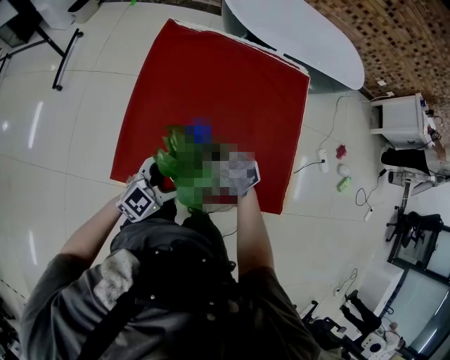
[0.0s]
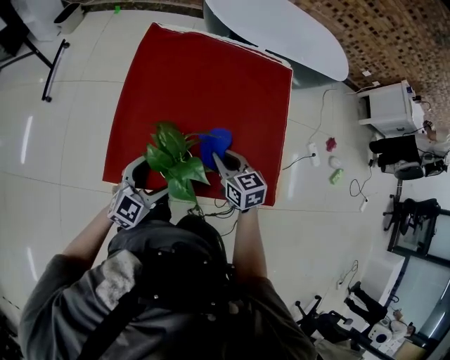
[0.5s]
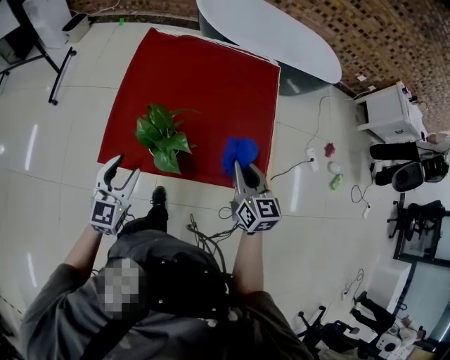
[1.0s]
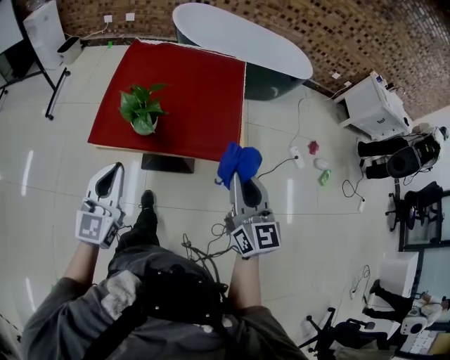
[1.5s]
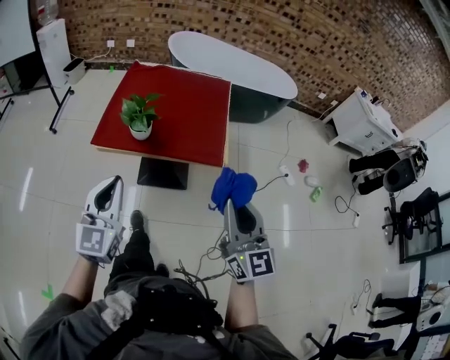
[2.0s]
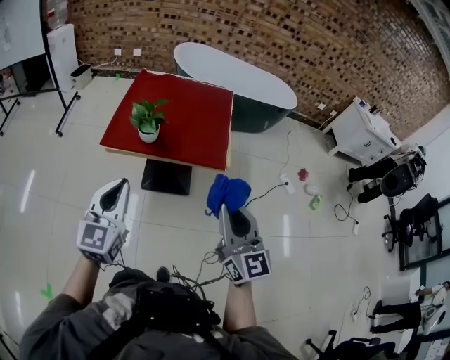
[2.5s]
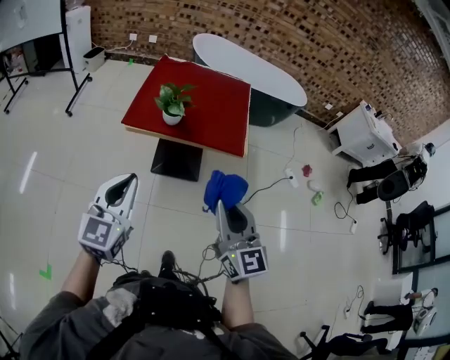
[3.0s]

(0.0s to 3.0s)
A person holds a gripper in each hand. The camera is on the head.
0.0s - 1.5s: The left gripper shifts some 40 cm backward and upward, swivels roughly 40 degrees, and closes its fingers; the right gripper moves backward, to the right and upward, roughly 60 cm, and tips its fingers upward by some 40 degrees.
1.5s - 3.0s: The left gripper shifts some 30 cm backward, while the right gripper goes approximately 30 cm backward and to the left.

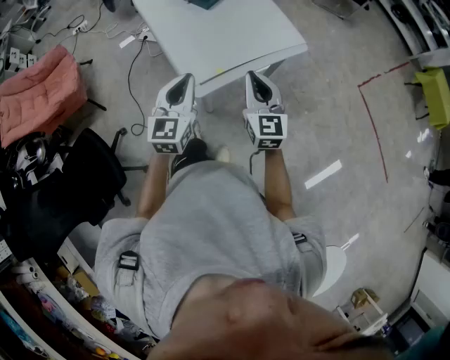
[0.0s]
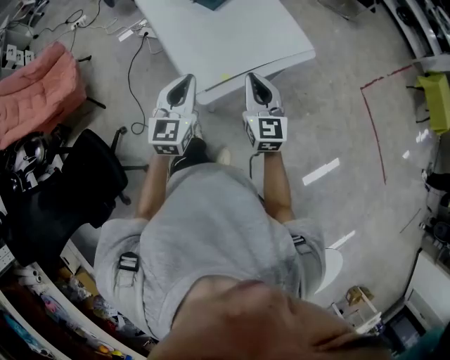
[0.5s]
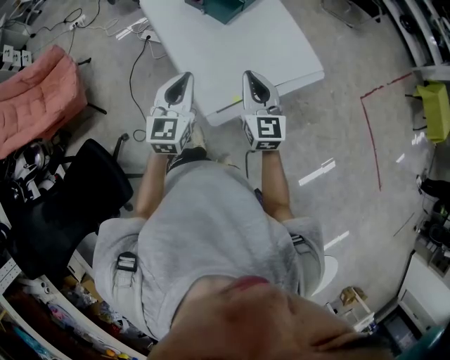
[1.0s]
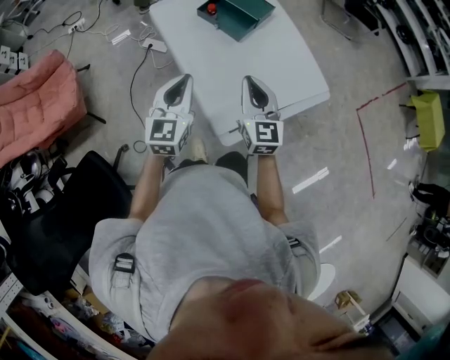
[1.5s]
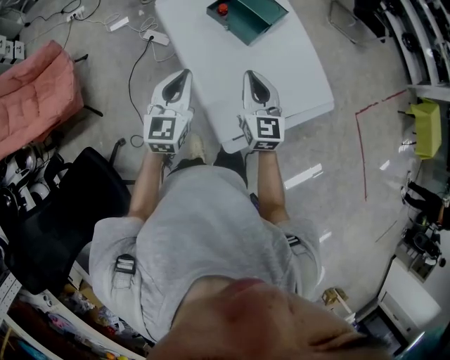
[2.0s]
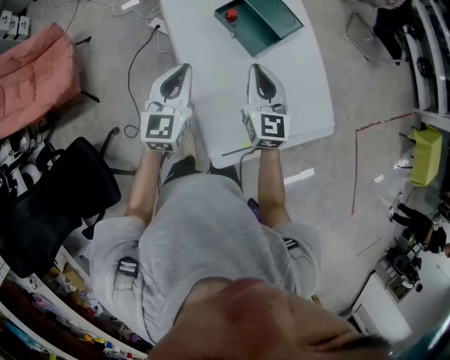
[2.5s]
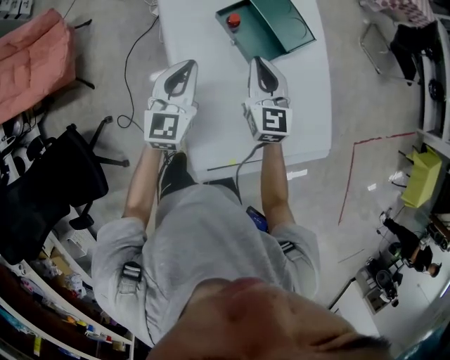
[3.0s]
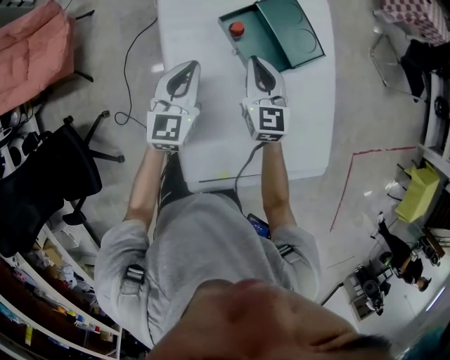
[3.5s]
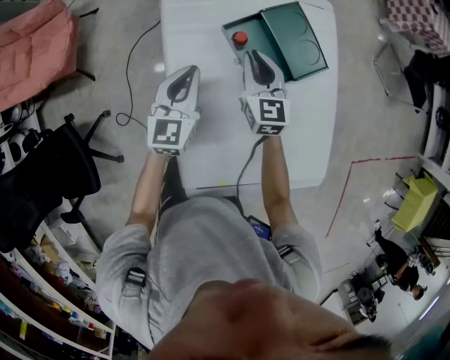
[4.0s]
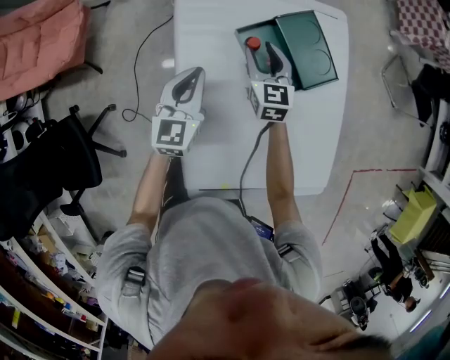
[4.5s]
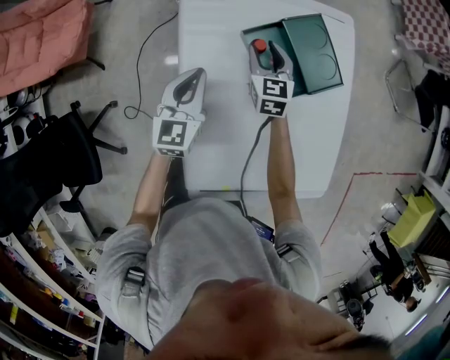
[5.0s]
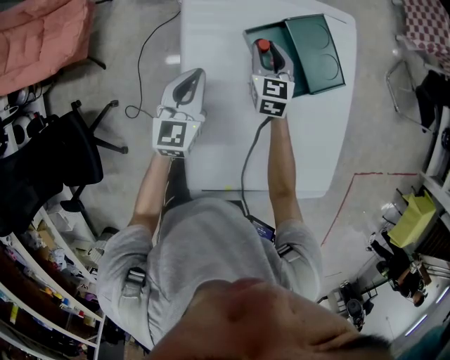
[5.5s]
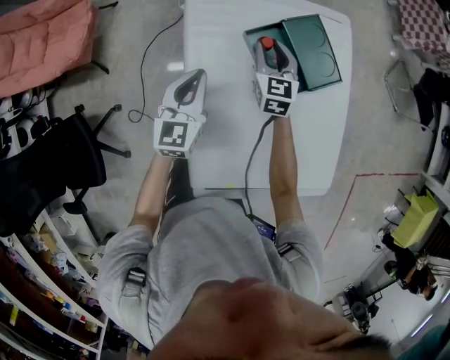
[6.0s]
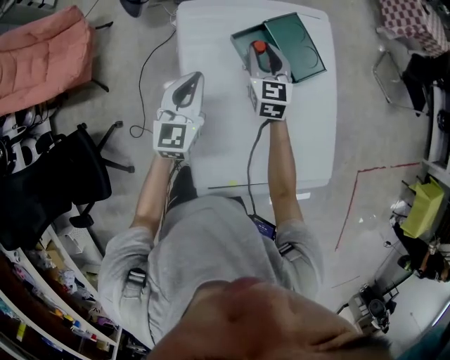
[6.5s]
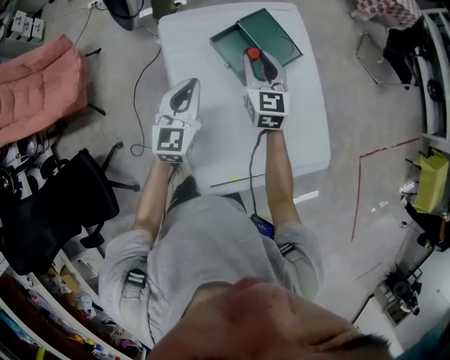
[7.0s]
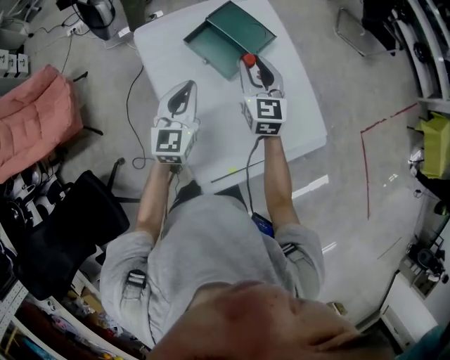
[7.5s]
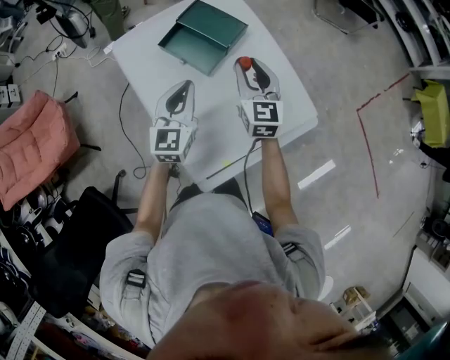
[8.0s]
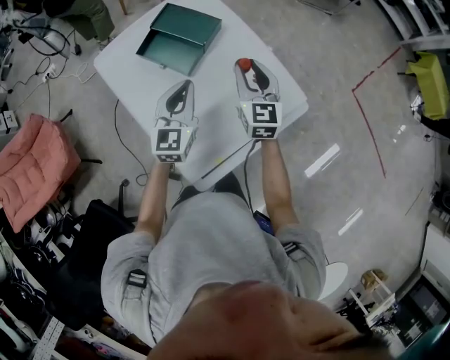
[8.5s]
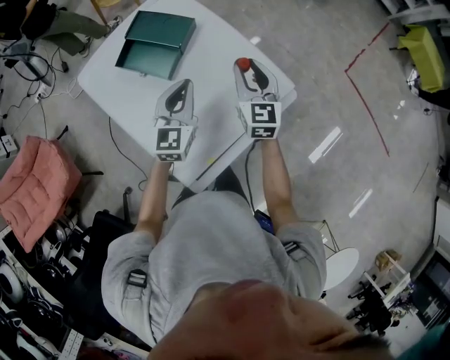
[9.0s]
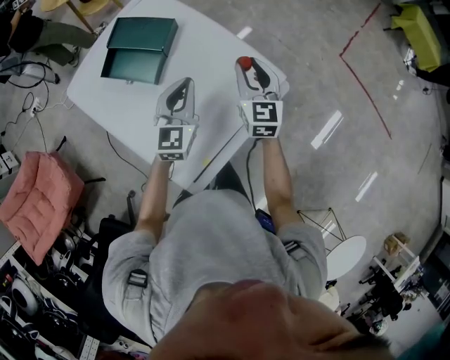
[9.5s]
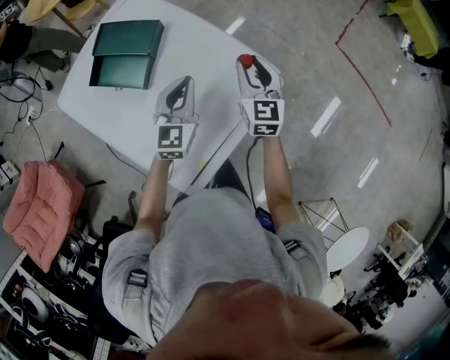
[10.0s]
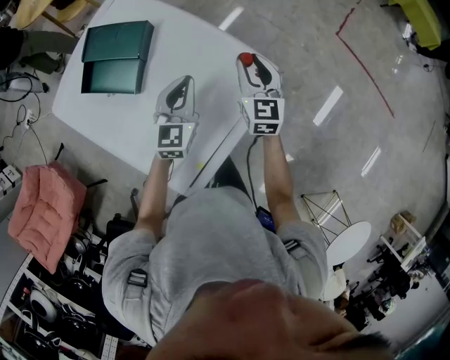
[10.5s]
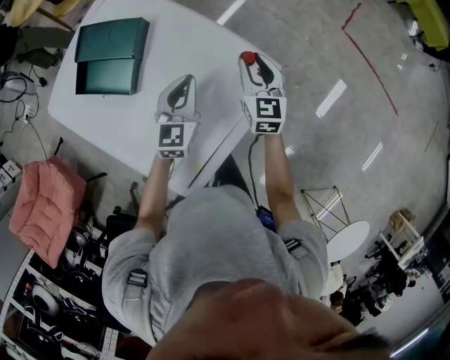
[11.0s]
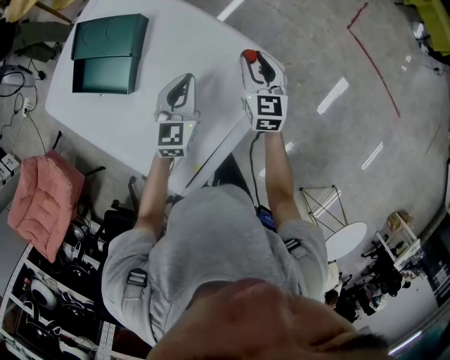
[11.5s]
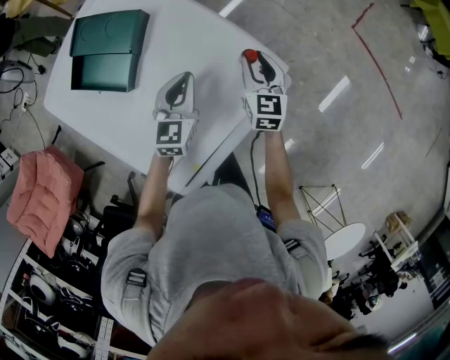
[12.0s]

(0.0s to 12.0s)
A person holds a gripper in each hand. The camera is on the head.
0.0s - 2.0s: The two grippers go approximately 35 cm forward and to the left.
2.0s - 4.0s: The grippers both shift forward and downward by about 30 cm. The right gripper changes its angle by approximately 20 degrees.
4.0s - 6.0s: The right gripper is displaced forward by roughly 5 cm.
6.0s - 8.0s: The left gripper moves to the right, upward and backward, some 20 cm, and rotates some 30 degrees. Meanwhile the right gripper travels backward, to the right and upward by roughly 30 cm, and turns by about 30 degrees.
8.0s - 10.0s: Both grippers move to the right, approximately 25 cm. The left gripper changes its angle by about 20 degrees, while the right gripper swivels approximately 20 degrees.
10.0s - 12.0s: Both grippers move downward, some 10 cm.

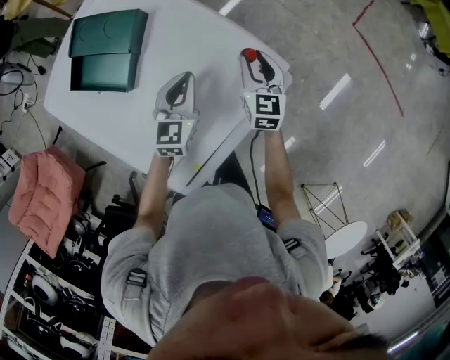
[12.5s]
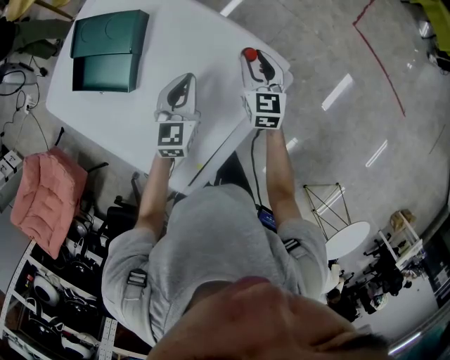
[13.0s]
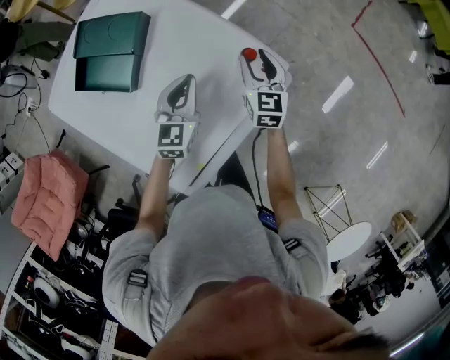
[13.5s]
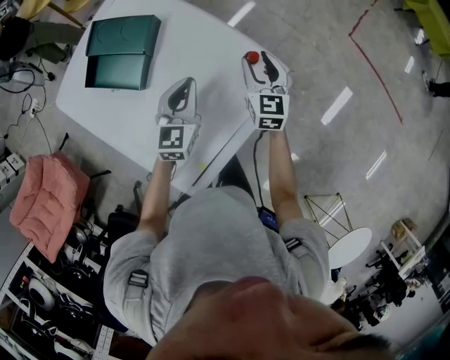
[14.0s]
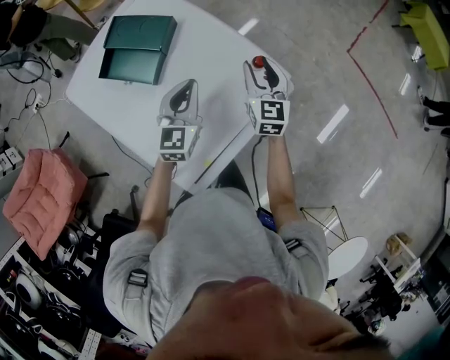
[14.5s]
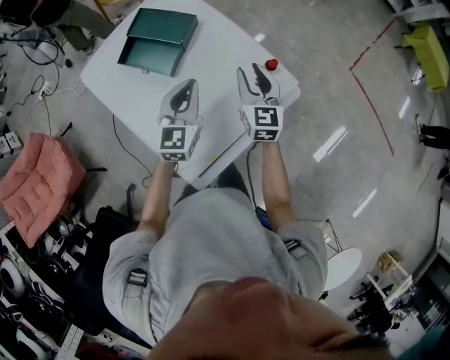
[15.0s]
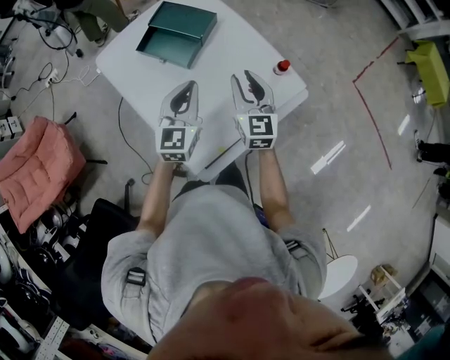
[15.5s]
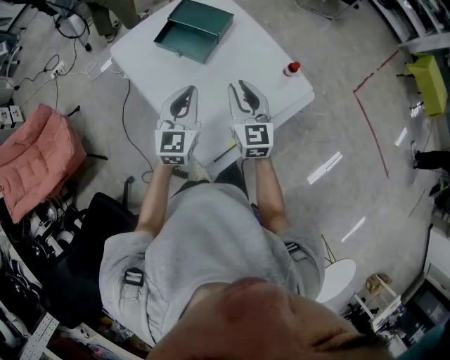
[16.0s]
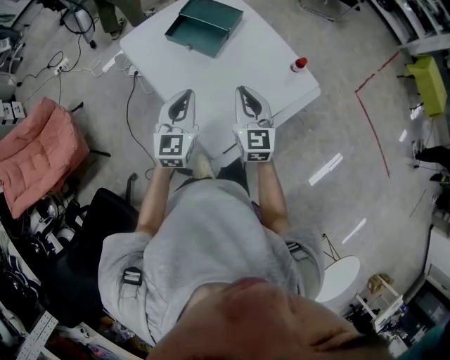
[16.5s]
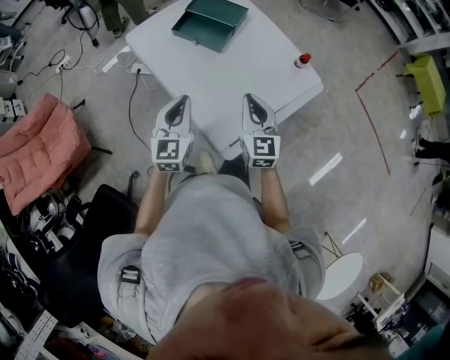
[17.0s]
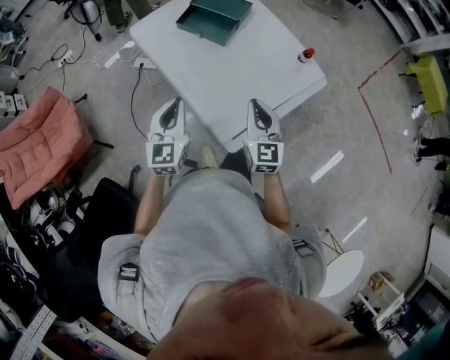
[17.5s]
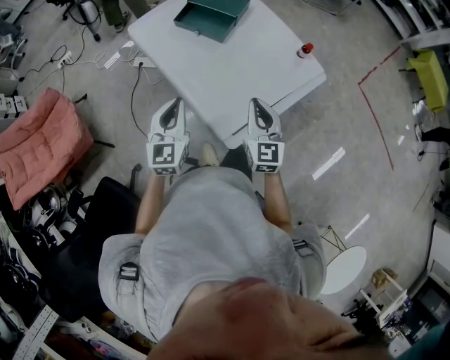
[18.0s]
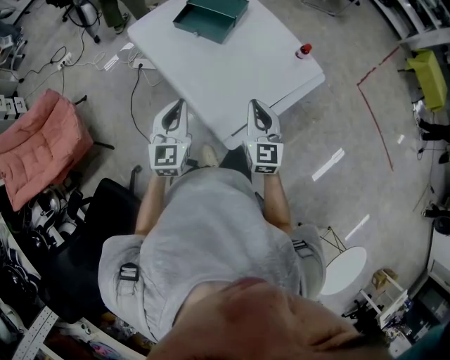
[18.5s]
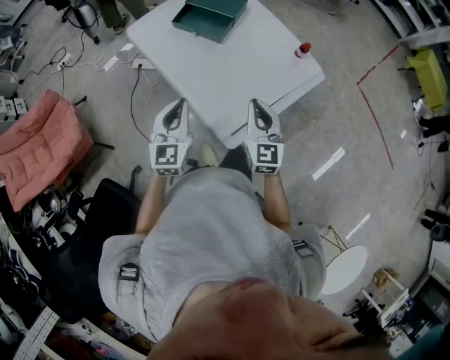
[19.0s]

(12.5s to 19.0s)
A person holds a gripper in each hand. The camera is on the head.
12.5s - 14.5s: The right gripper shifts roughly 10 cm upward; the left gripper moves upward and backward, some 10 cm.
14.5s - 17.0s: The left gripper travels to the left and backward by about 35 cm; the right gripper goes some 35 cm backward and to the left, and closes.
17.0s - 19.0s: The grippers both shift backward by roughly 5 cm.

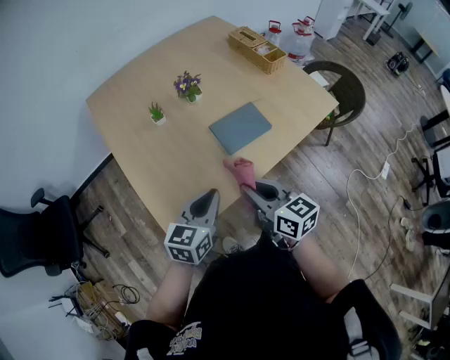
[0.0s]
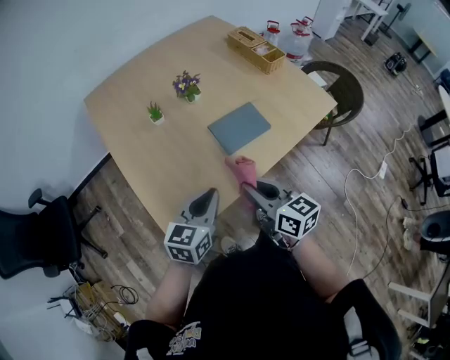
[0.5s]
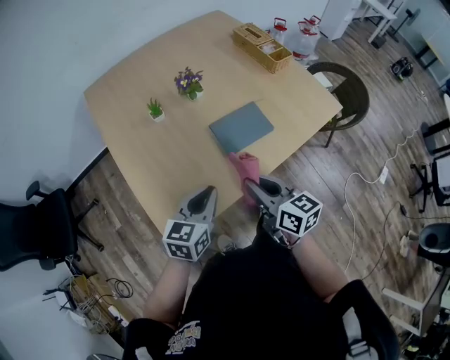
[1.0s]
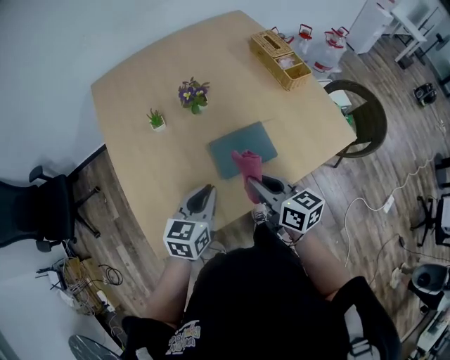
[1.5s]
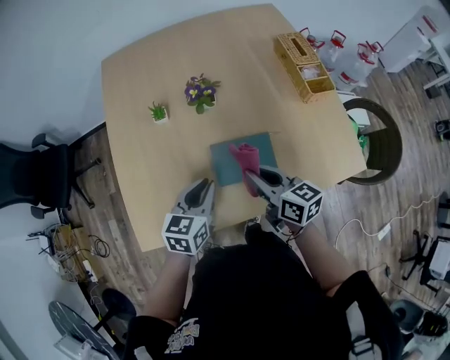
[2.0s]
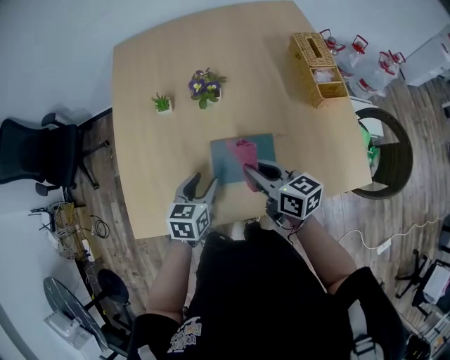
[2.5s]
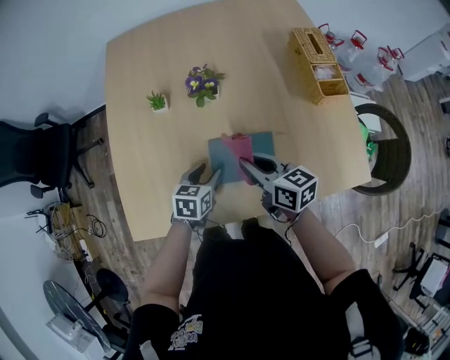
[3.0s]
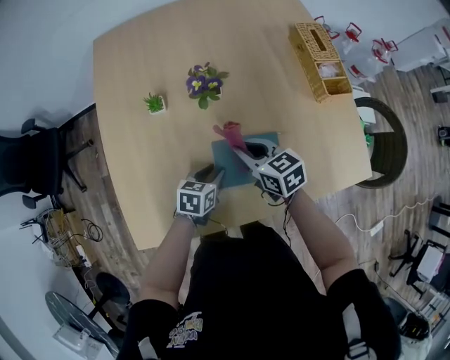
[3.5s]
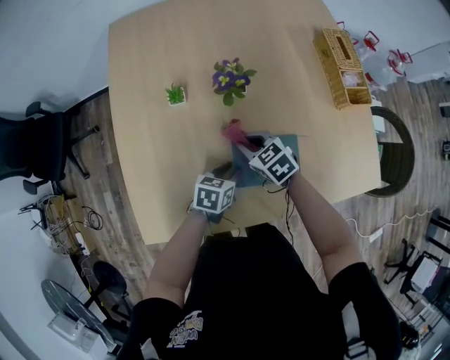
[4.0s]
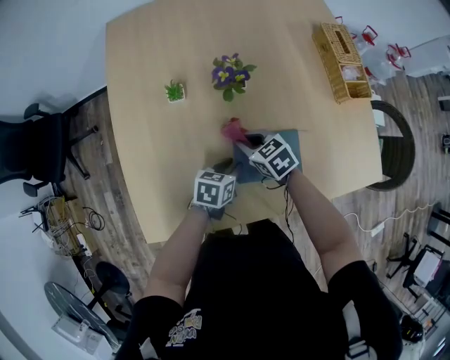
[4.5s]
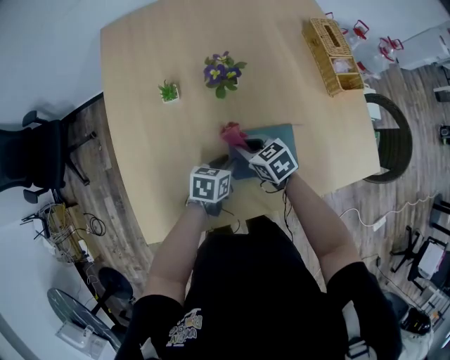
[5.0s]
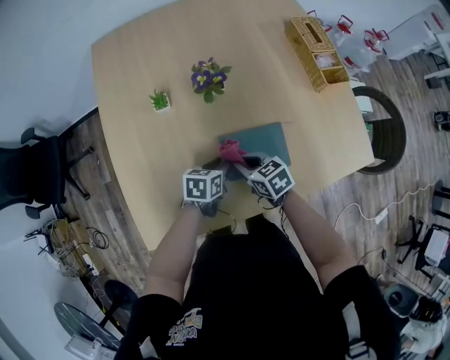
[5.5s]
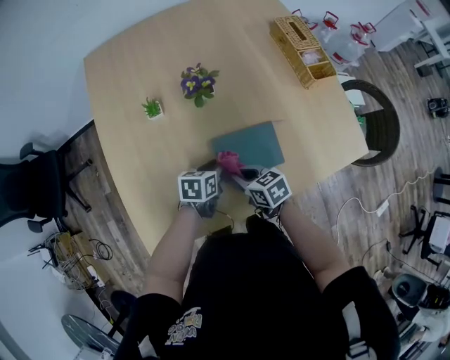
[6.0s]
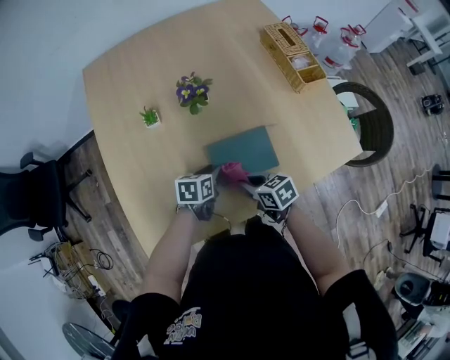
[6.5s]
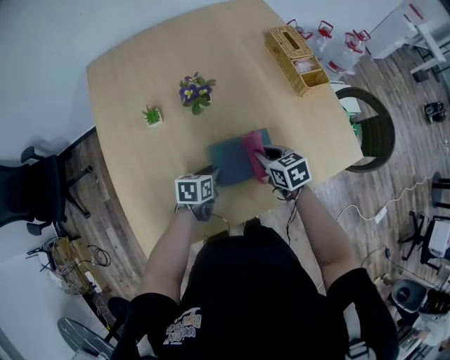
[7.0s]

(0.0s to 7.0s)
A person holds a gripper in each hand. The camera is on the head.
0.0s - 2.0s: Both grippers travel together forward and to the right, roughly 20 cm. The right gripper changes its angle by approximately 20 degrees; the left gripper changes its angle by approximately 20 degrees.
2.0s - 3.5s: The right gripper is displaced forward and downward by roughly 15 cm, and changes its angle by roughly 20 degrees; the left gripper shifts some 15 cm downward, turns by approximately 20 degrees, and opens.
3.5s - 5.0s: The right gripper is displaced downward by roughly 10 cm.
5.0s - 7.0s: The right gripper travels to the right by approximately 15 cm, and turns by about 20 degrees.
